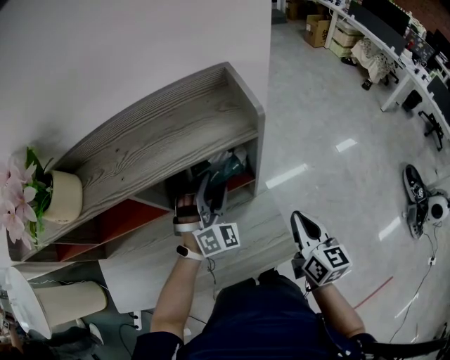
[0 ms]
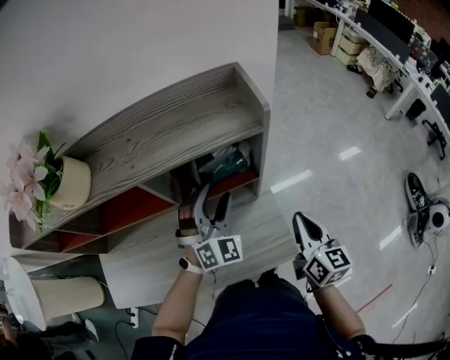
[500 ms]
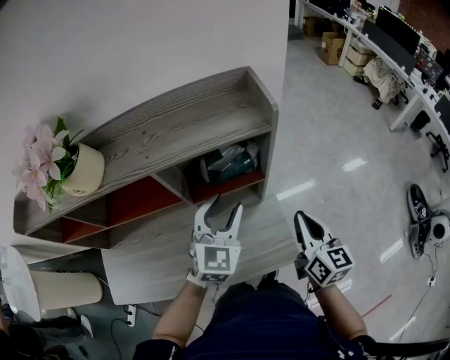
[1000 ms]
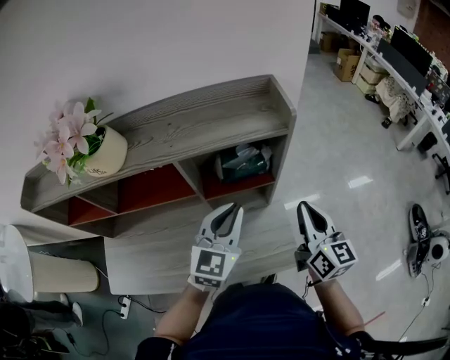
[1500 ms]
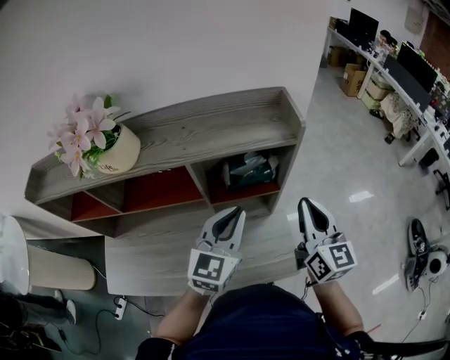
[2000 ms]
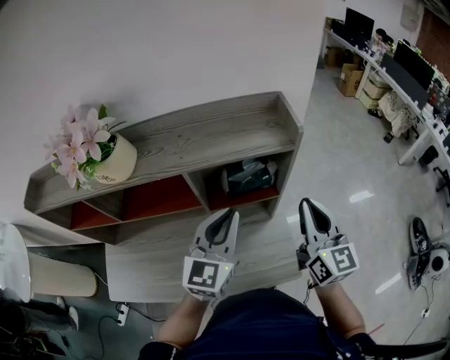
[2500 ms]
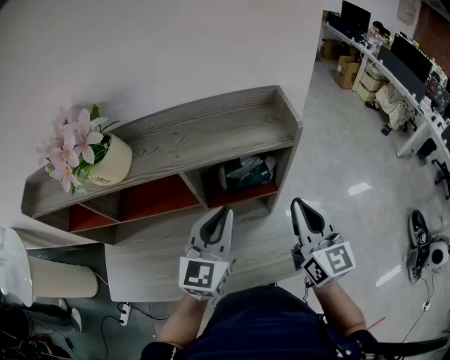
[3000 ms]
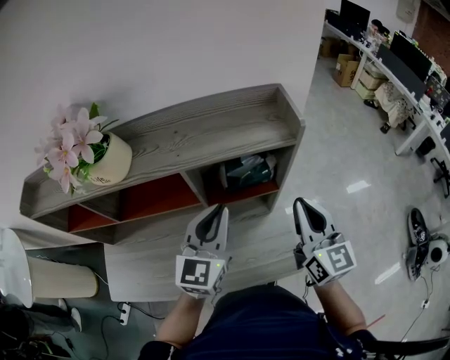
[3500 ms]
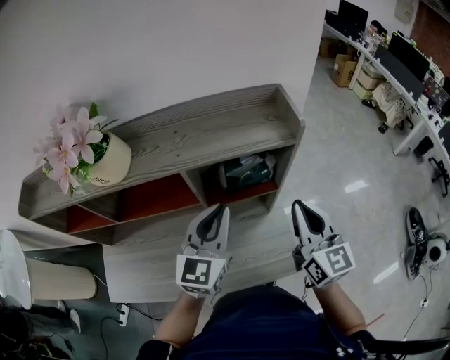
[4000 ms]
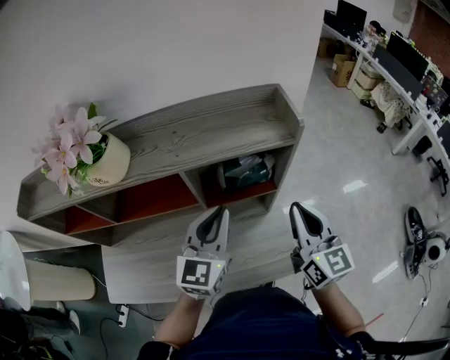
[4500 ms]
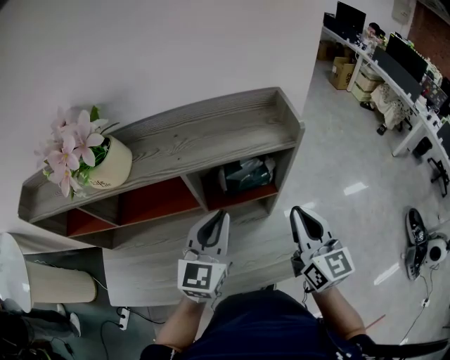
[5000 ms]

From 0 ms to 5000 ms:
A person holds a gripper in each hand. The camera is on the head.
From 0 ms to 2500 ms: The left gripper is displaced upward and backward by about 20 cm, twists about 60 degrees counterclockwise, seen from behind, and closes up. The right gripper heads upward, covering some 15 cm, and turns by approximately 30 degrees.
From 2500 ms to 5000 ms: The grippers stay close to where they were, moving slightly.

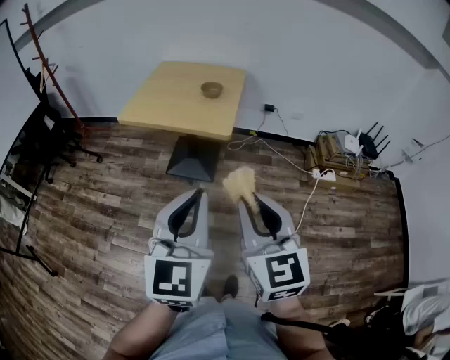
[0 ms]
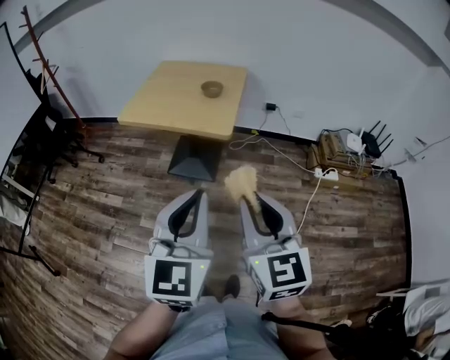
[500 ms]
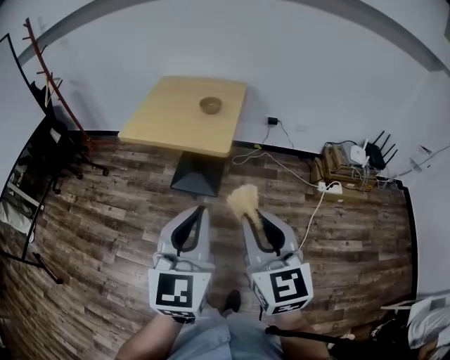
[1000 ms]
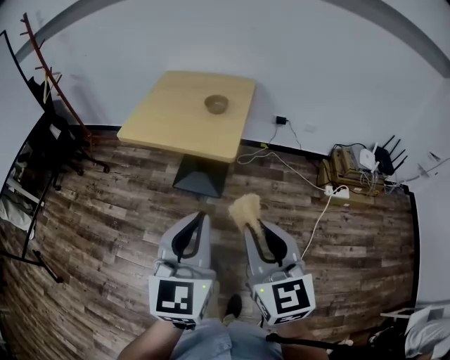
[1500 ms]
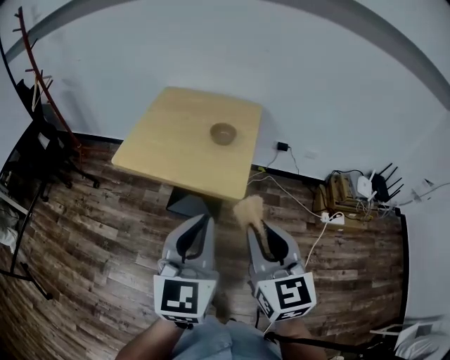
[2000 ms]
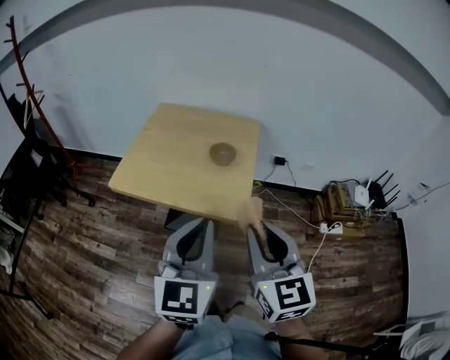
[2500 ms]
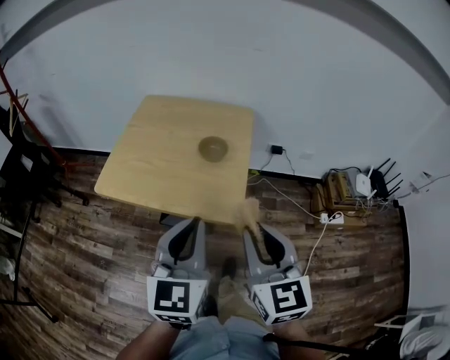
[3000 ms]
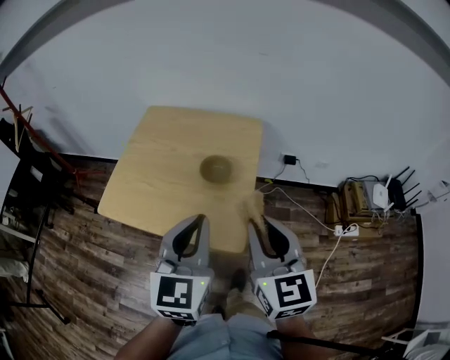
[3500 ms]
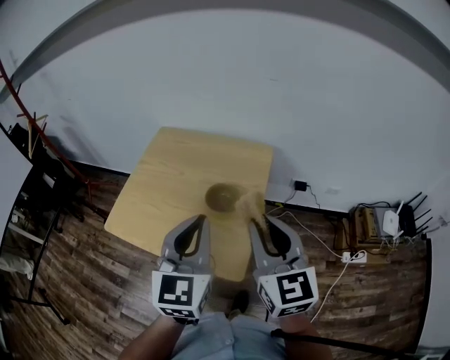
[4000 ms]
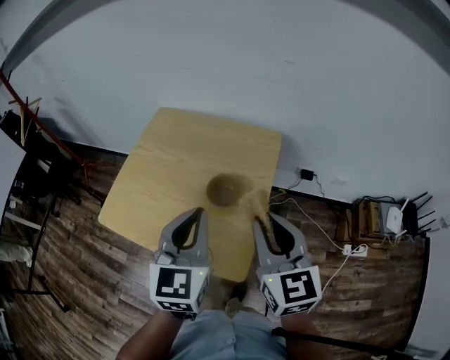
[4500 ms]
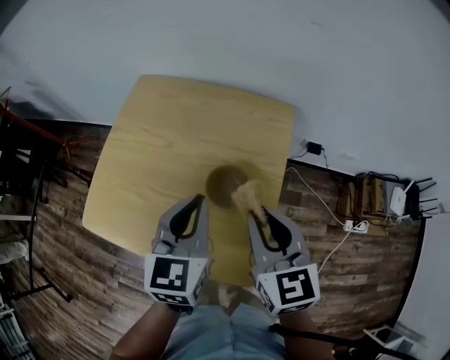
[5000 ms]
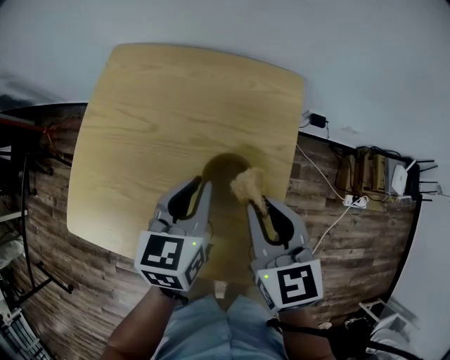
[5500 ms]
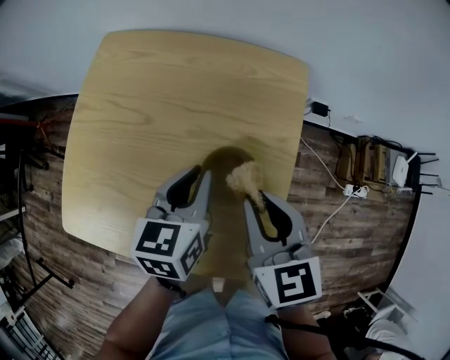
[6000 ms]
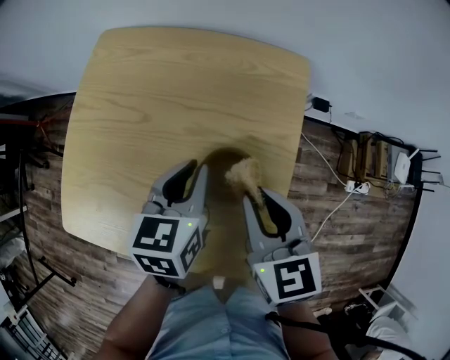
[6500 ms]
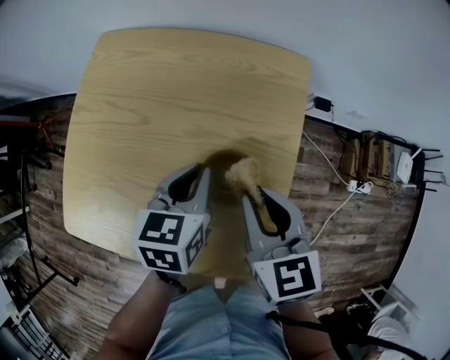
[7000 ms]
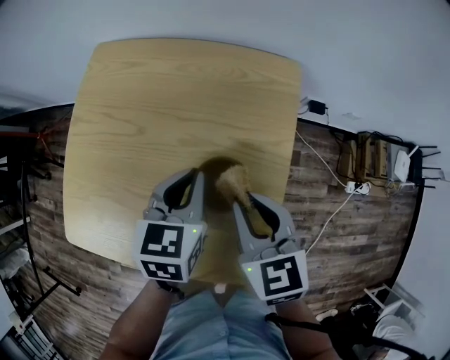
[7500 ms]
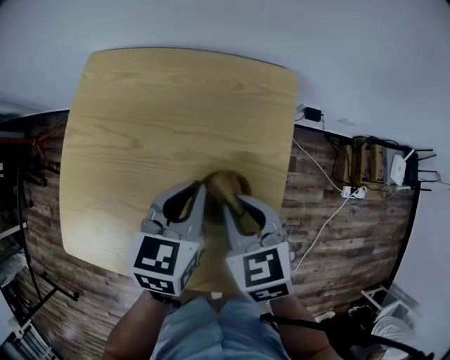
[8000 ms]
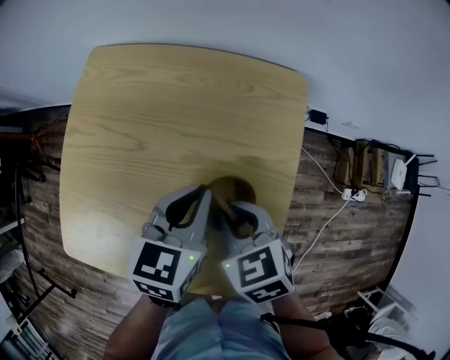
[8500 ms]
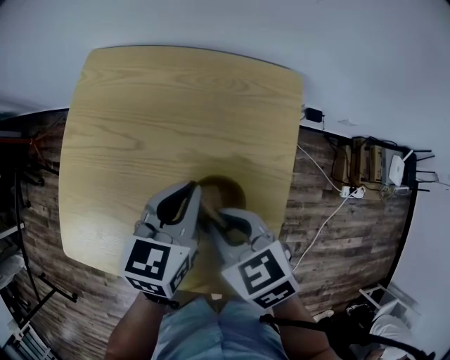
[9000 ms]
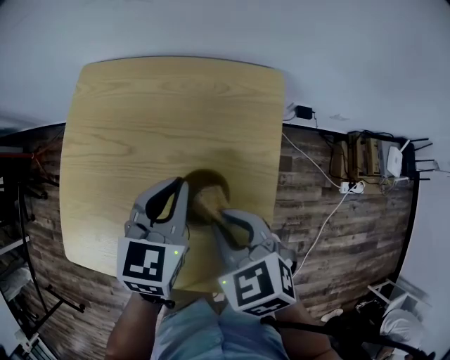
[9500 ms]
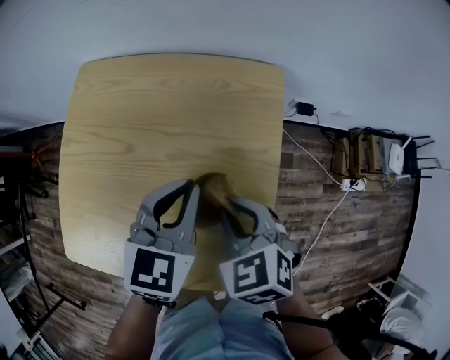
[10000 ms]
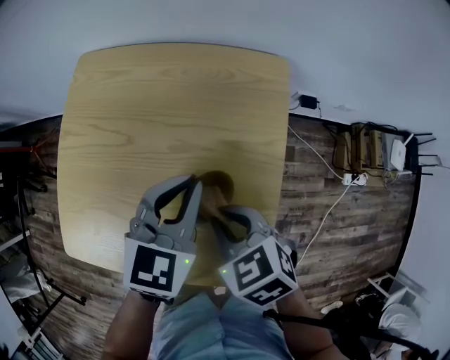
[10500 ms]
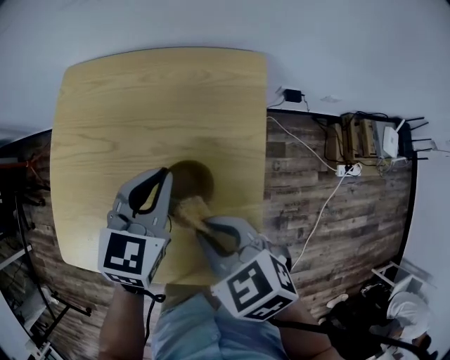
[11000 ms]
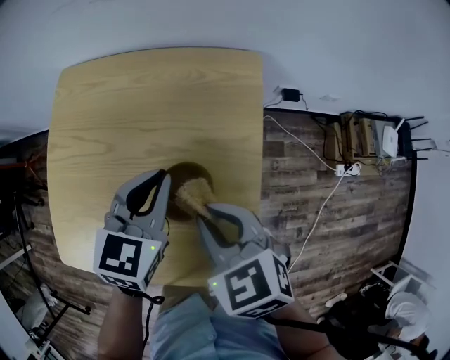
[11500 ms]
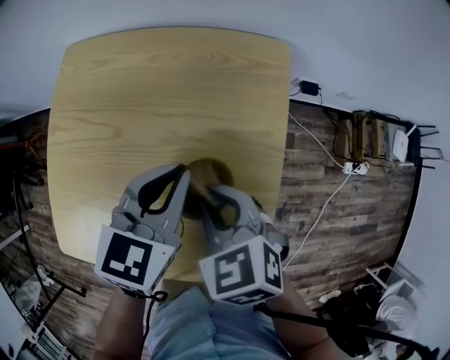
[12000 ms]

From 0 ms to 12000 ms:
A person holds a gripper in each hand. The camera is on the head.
From 0 ms to 2000 ms: Both grippers travel together forward, approximately 20 cm.
From 2000 ms to 4000 ms: The two grippers go approximately 30 cm forward.
From 4000 ms to 6000 ms: The two grippers go some 25 cm downward and forward. The left gripper turns by approximately 40 degrees. The right gripper swivels approximately 30 degrees.
From 6000 ms to 8000 ms: The right gripper heads downward, covering roughly 5 cm.
From 8000 ms to 10000 ms: The grippers stay close to where they were, moving slightly.

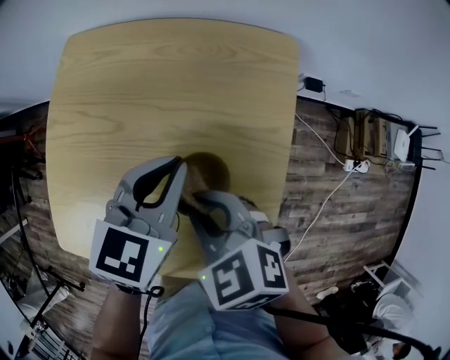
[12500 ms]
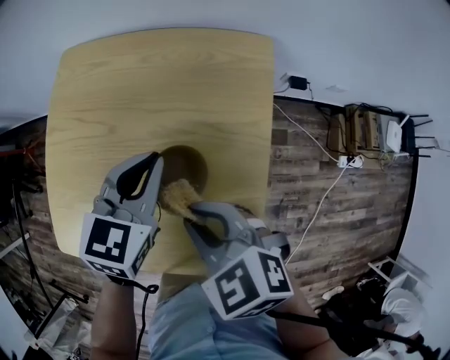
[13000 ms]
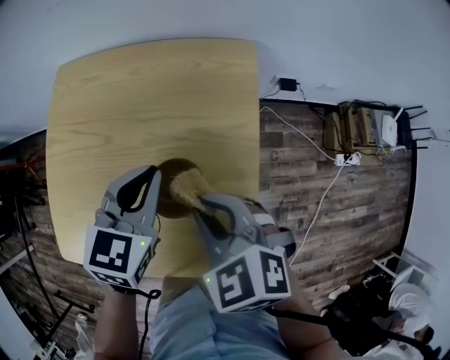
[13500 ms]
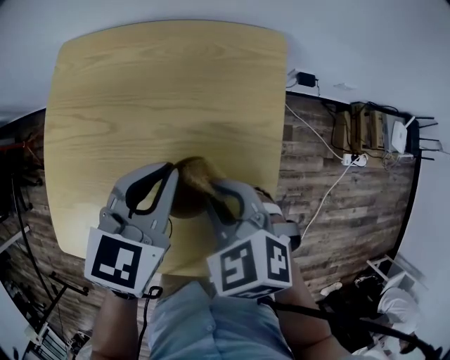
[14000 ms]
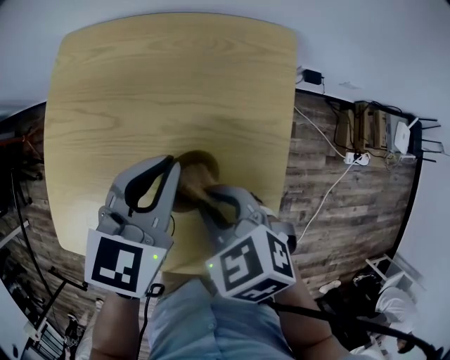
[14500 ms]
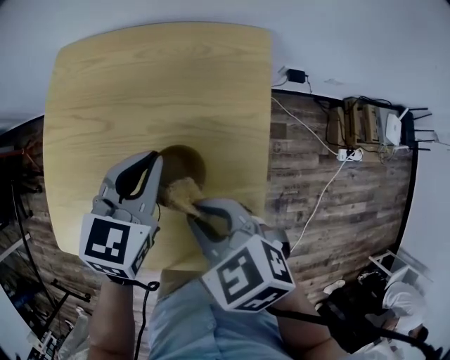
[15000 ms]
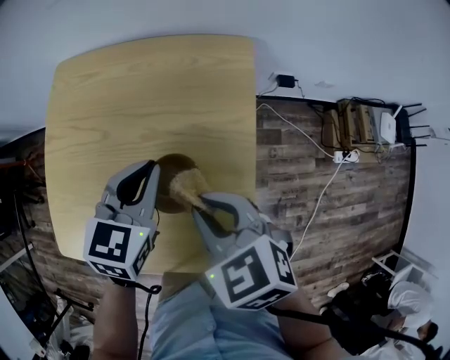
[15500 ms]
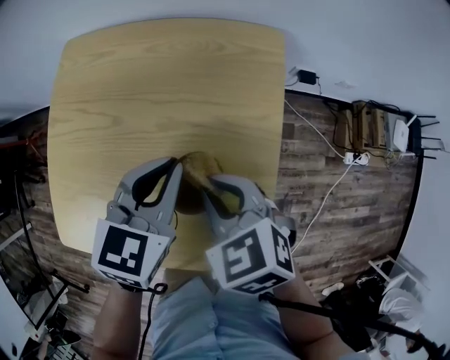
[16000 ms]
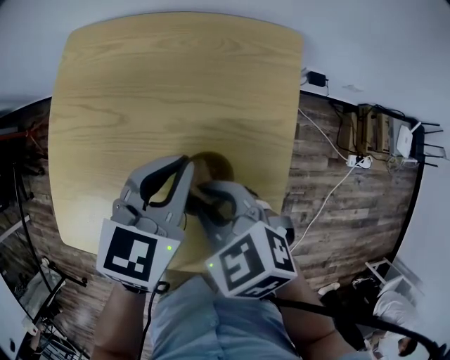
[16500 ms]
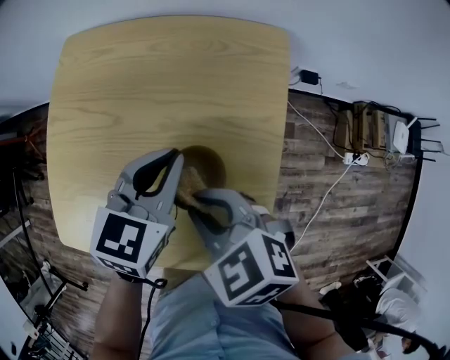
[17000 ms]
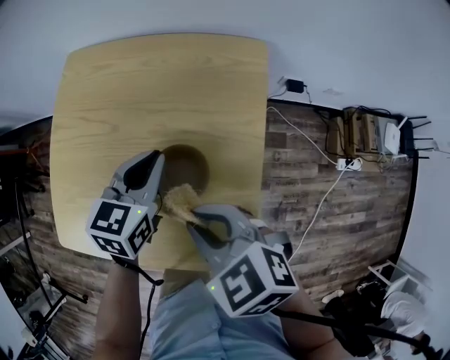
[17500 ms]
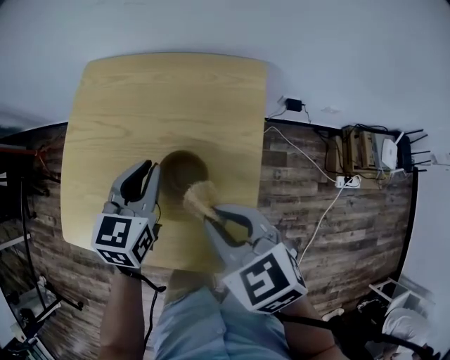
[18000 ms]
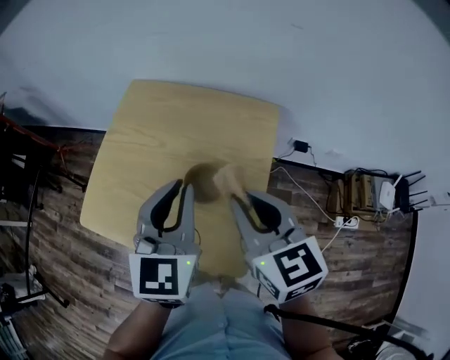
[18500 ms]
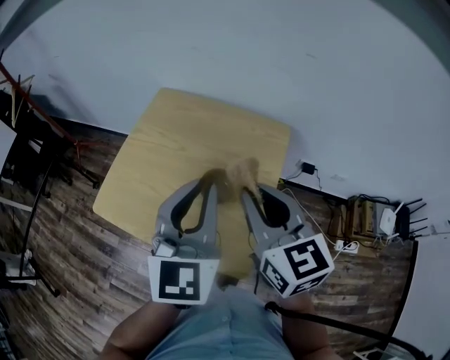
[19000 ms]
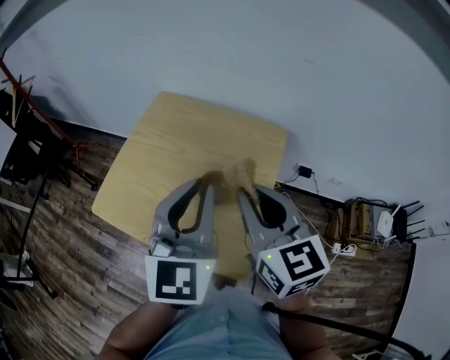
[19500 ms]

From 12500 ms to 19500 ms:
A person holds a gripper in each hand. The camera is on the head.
From 16000 ms to 17500 ms: The right gripper is displaced backward and upward by some 10 cm.
From 17500 ms to 19500 ms: The left gripper heads upward and backward, covering roughly 30 cm, and rotates some 40 degrees. Meanwhile the right gripper goes about 20 cm upward, and tilts its fingers roughly 30 degrees upward.

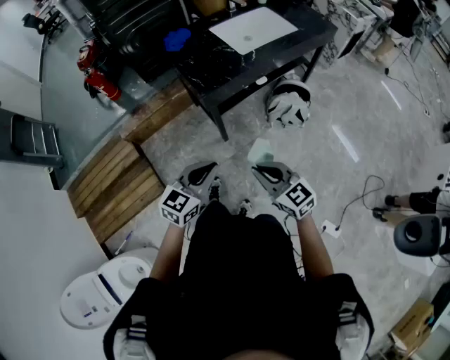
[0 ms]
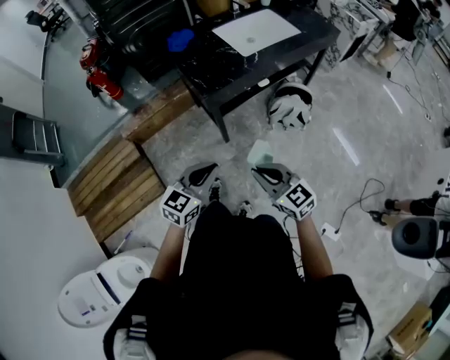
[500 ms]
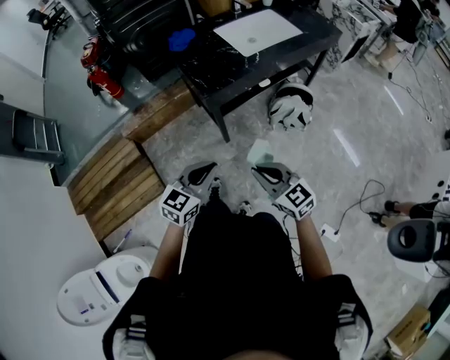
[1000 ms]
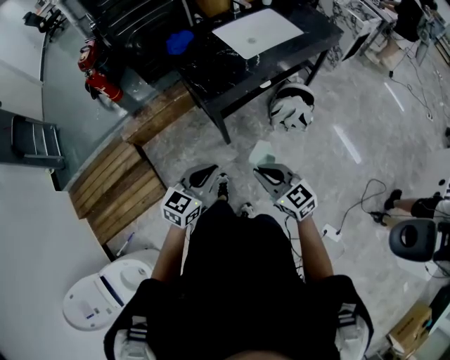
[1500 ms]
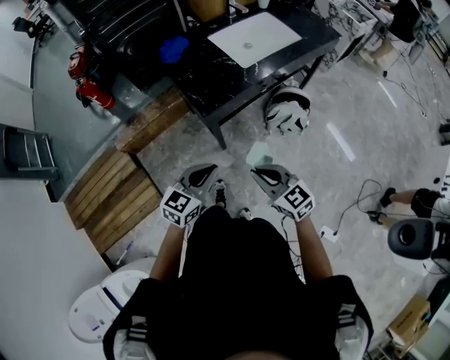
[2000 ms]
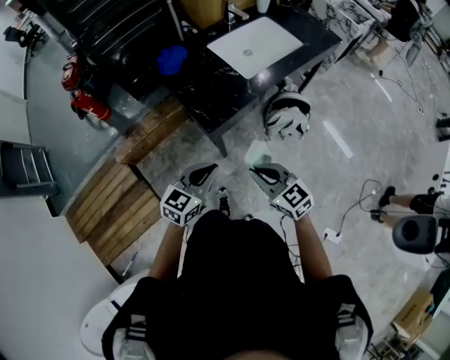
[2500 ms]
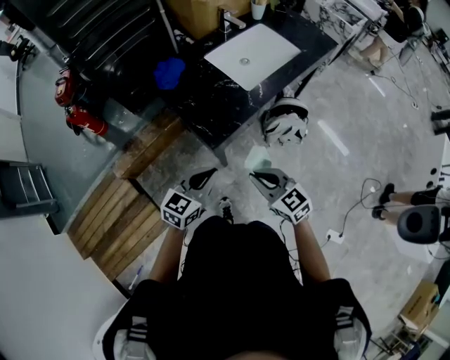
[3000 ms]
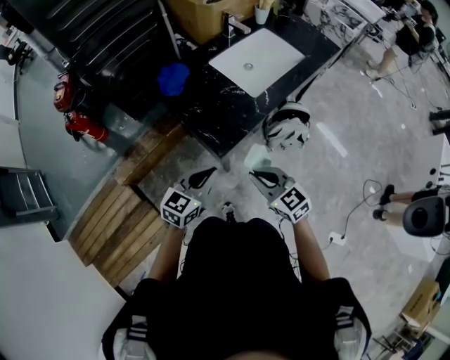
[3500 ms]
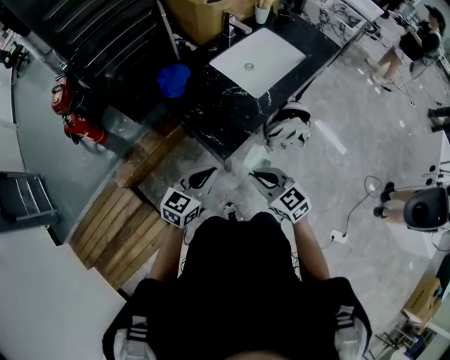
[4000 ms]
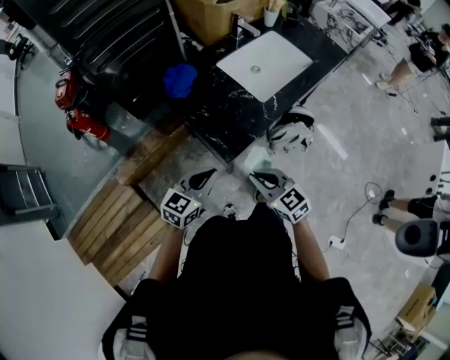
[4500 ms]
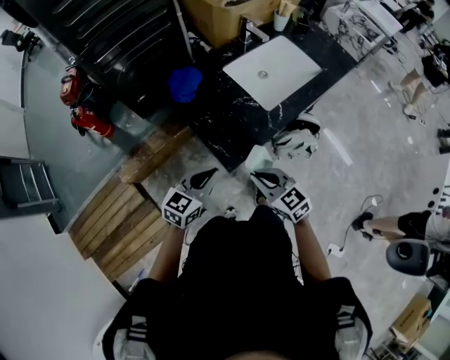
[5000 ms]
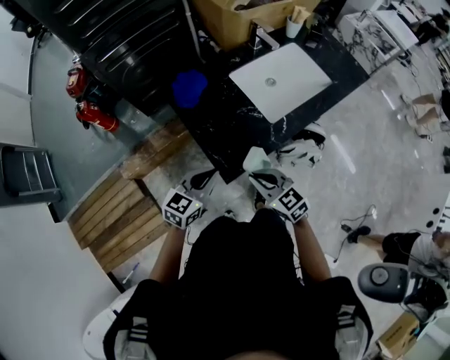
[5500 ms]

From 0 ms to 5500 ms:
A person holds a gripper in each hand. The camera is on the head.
From 0 ms to 2000 ms: The two grippers go some 10 cm forward.
From 2000 ms to 3500 ms: Both grippers move forward and to the left, some 20 cm.
From 3500 ms to 5500 ms: The two grippers go roughly 10 cm forward.
